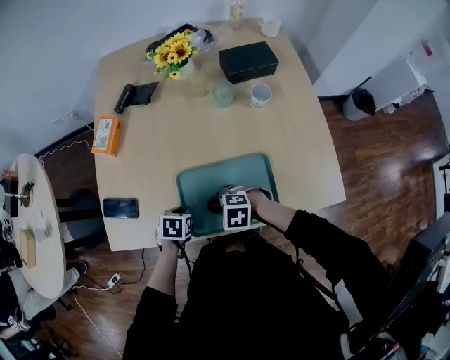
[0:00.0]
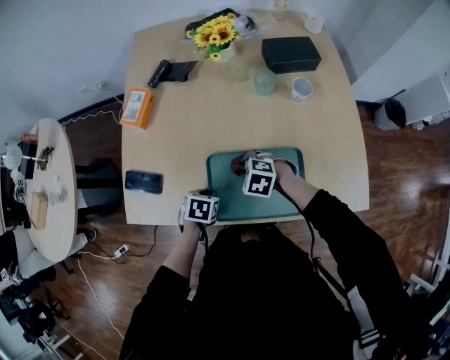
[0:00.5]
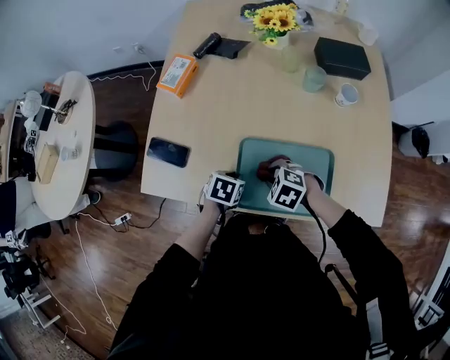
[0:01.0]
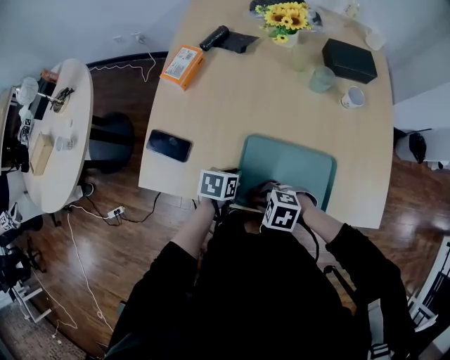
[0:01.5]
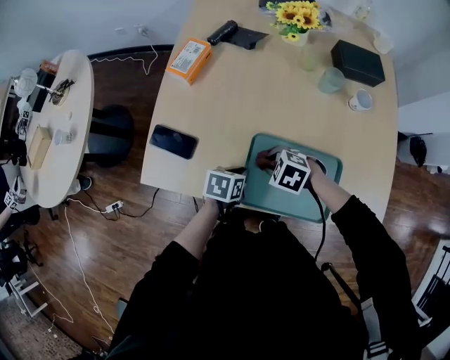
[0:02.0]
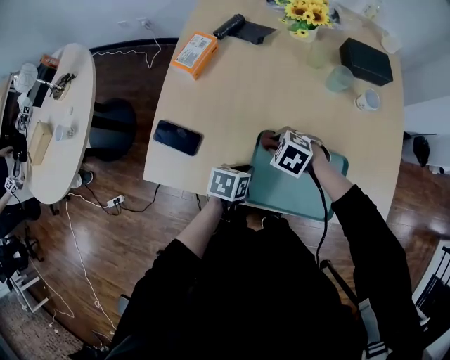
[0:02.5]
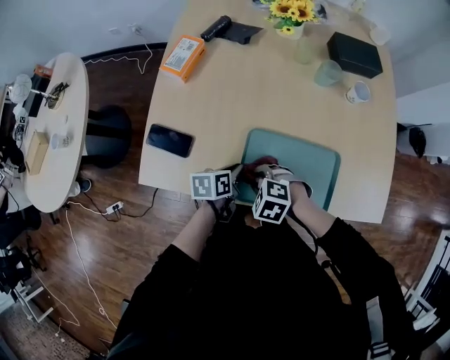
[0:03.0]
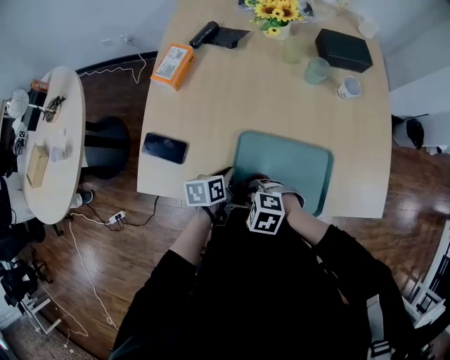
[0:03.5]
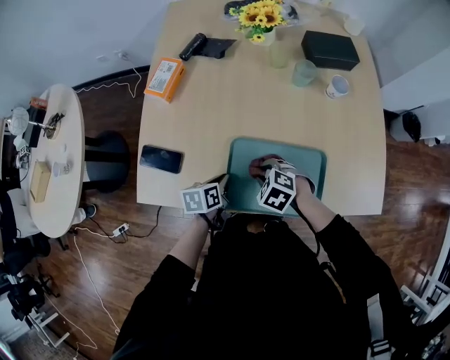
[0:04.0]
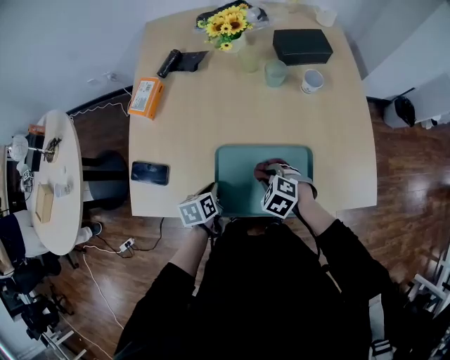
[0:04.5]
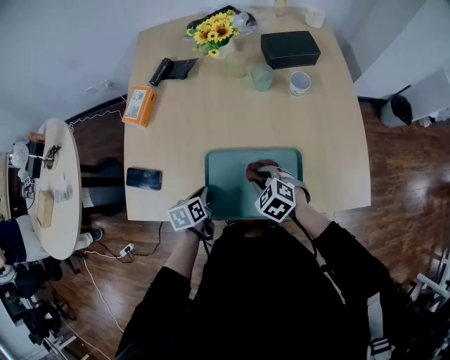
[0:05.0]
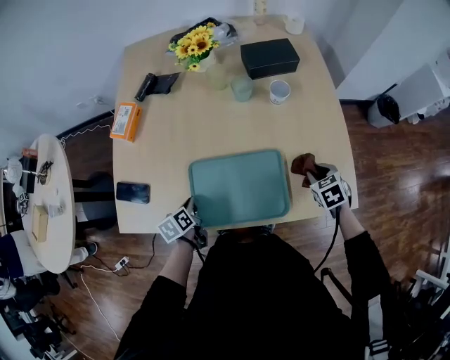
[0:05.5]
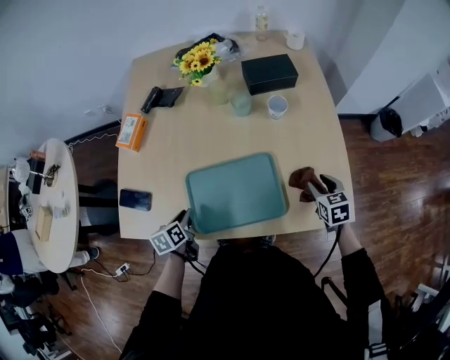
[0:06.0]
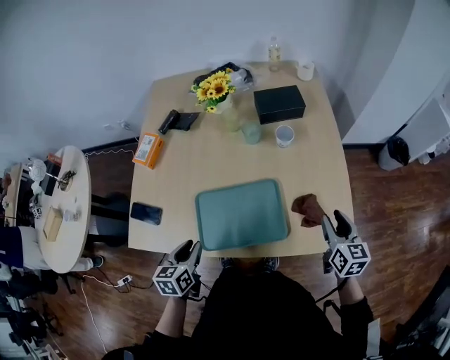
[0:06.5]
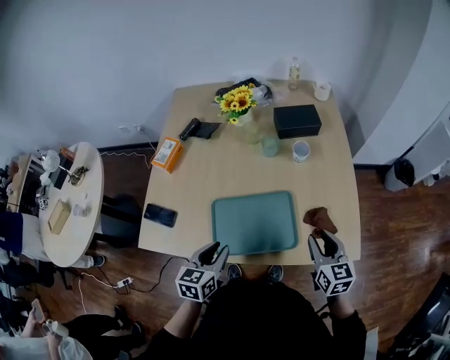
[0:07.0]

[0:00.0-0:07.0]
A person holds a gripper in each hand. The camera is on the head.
0:00.0 to 0:02.0: The right gripper moves about 10 cm, while the left gripper rotates approximately 20 degrees.
0:02.0 to 0:03.5: The right gripper shifts by about 10 cm.
0:03.5 to 0:05.0: The right gripper changes place by roughly 15 cm, and swivels approximately 30 degrees.
0:05.0 to 0:07.0: The right gripper goes some 25 cm to the right and upward, and points its fingers some 30 degrees further upward, while the left gripper moves upward and to the right, some 20 cm, turns by about 30 degrees, and opens its fingers.

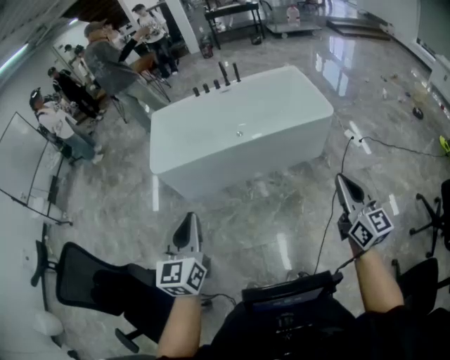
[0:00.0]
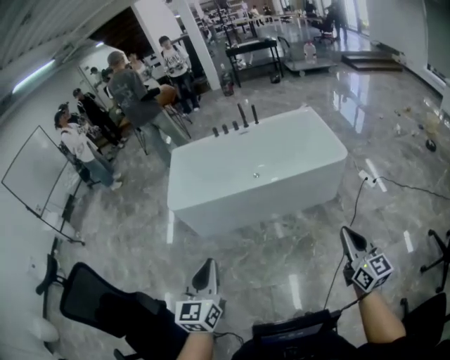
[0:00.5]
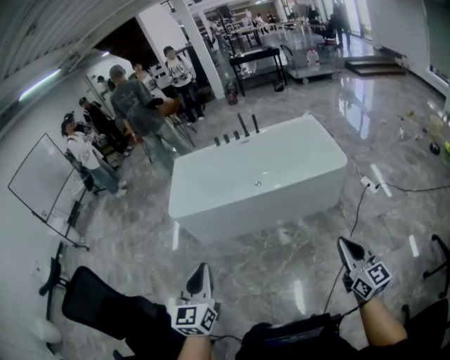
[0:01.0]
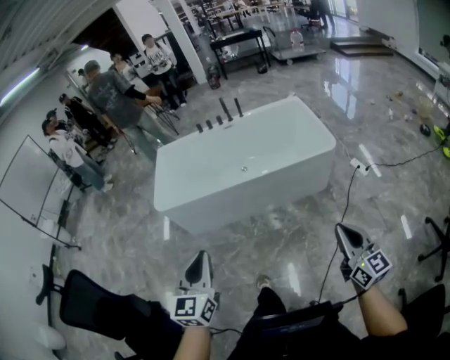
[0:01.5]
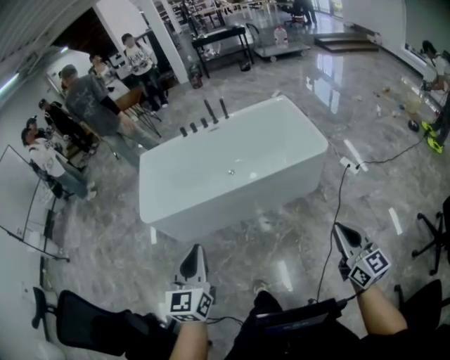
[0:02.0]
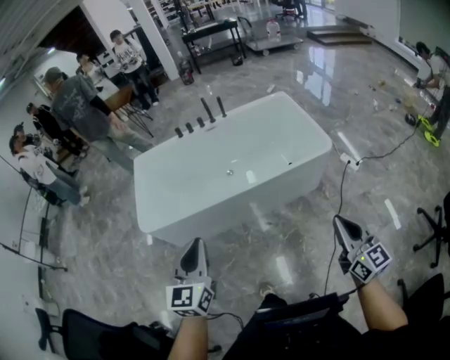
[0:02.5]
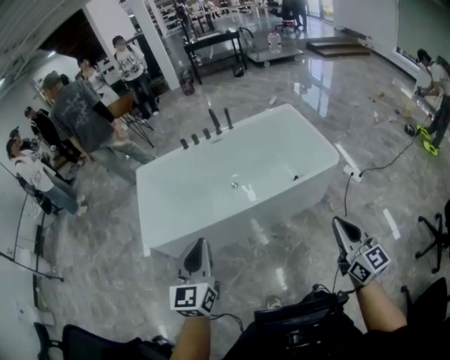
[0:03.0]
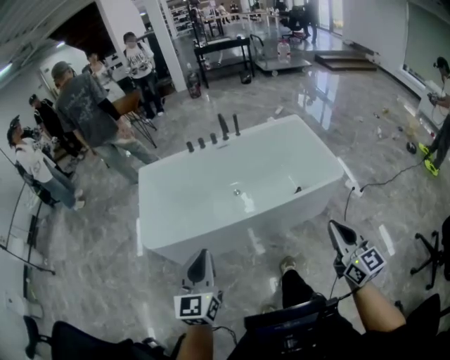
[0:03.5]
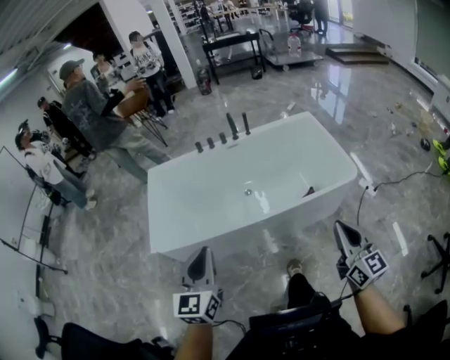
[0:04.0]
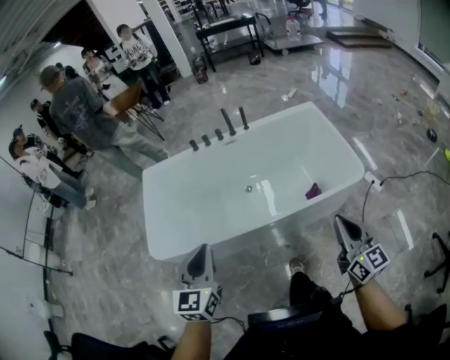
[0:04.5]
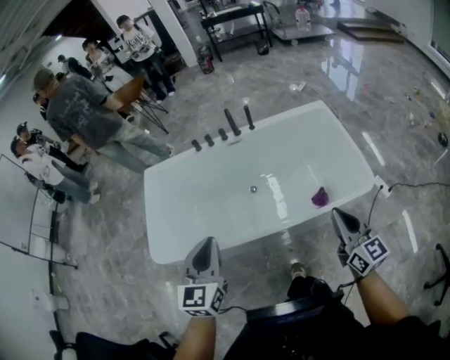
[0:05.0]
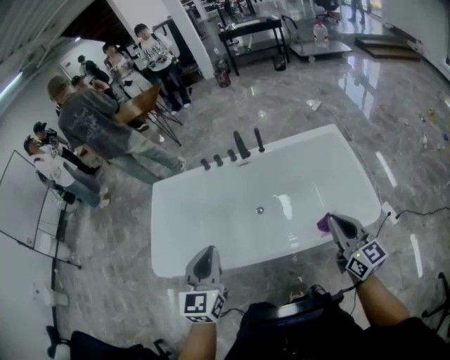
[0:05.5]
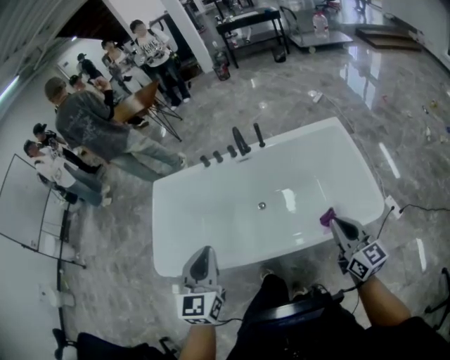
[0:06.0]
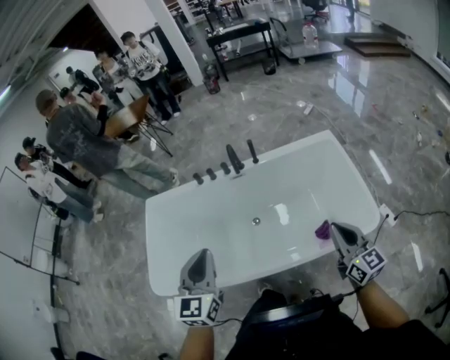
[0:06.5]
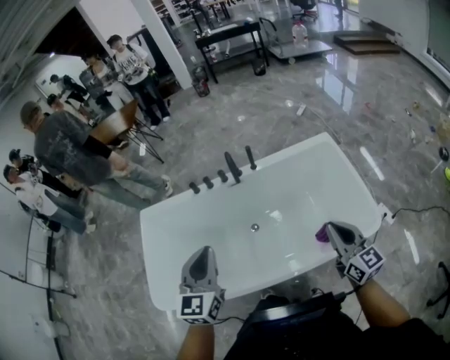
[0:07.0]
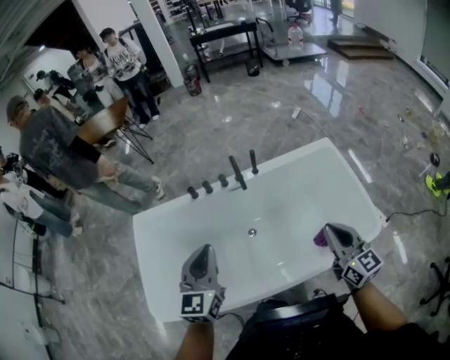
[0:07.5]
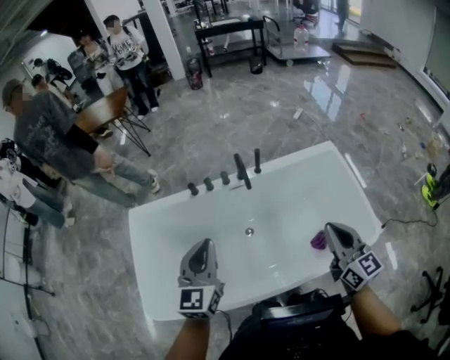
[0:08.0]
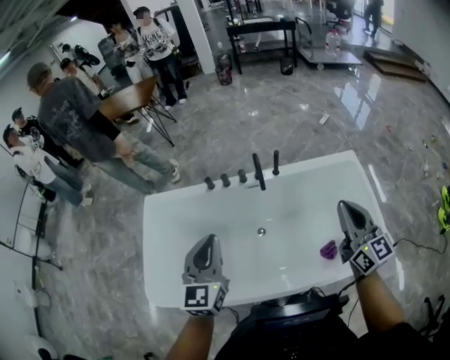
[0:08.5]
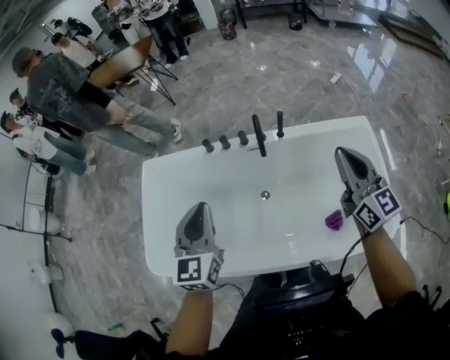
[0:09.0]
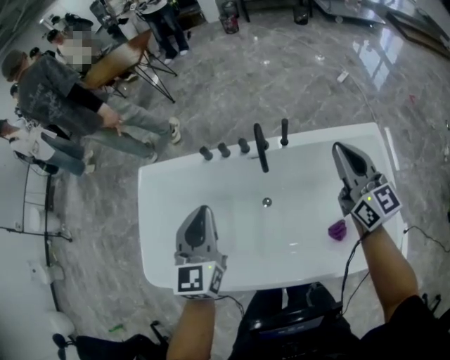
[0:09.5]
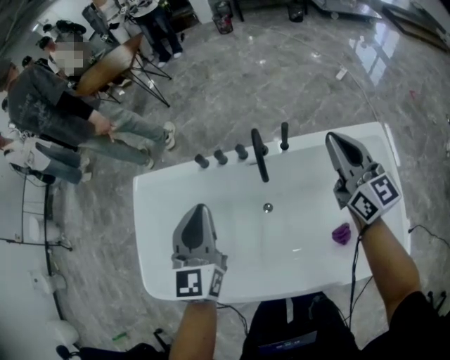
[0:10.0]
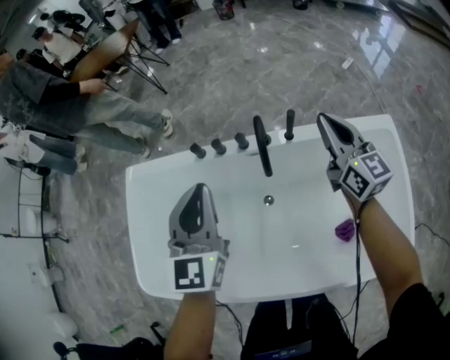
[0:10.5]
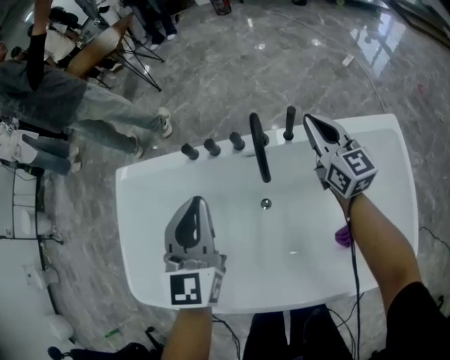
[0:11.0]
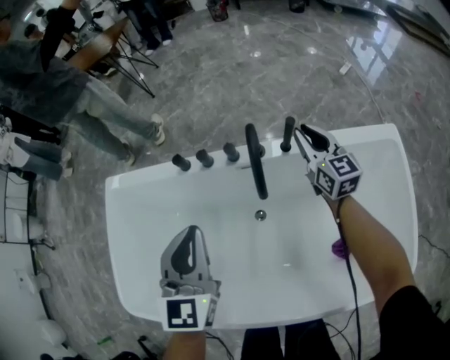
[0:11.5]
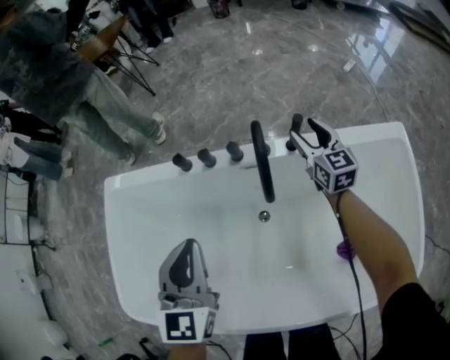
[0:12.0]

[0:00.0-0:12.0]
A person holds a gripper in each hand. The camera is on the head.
0:00.0 to 0:02.0: The left gripper is displaced forward and to the right by roughly 15 cm; the right gripper goes about 10 cm forward, to the right and downward.
0:02.0 to 0:04.0: The two grippers go about 25 cm forward and to the left.
0:04.0 to 0:06.0: The right gripper travels forward by approximately 35 cm; the left gripper shifts roughly 30 cm forward and to the right.
0:06.0 to 0:08.0: The left gripper travels forward by some 25 cm. The right gripper travels forward and to the left by roughly 20 cm.
0:08.0 to 0:10.0: The right gripper travels forward by some 30 cm. Meanwhile the left gripper shifts some 15 cm forward and to the right.
0:10.0 to 0:12.0: The right gripper moves downward and forward, roughly 35 cm, and opens up, while the left gripper heads downward, covering roughly 15 cm.

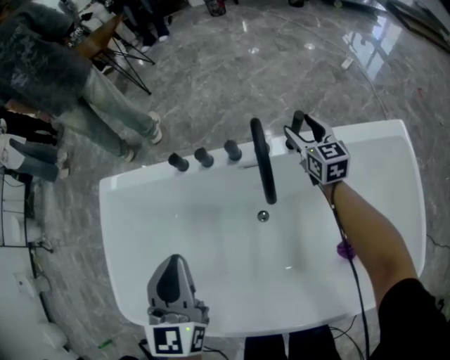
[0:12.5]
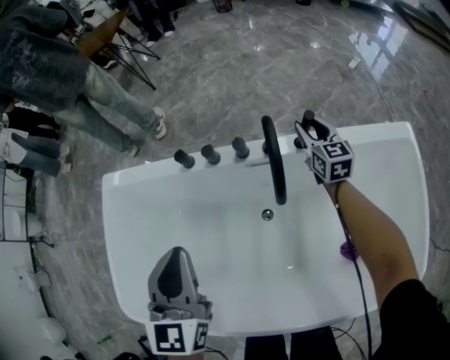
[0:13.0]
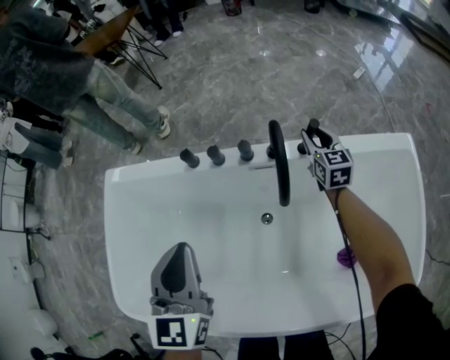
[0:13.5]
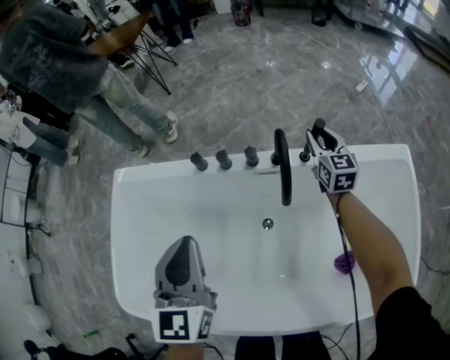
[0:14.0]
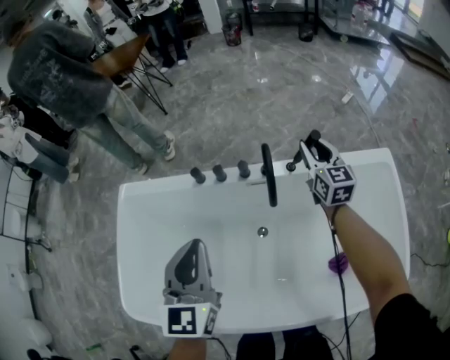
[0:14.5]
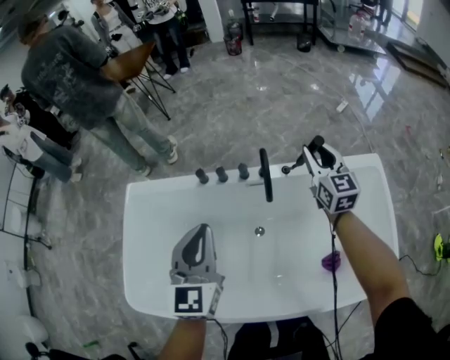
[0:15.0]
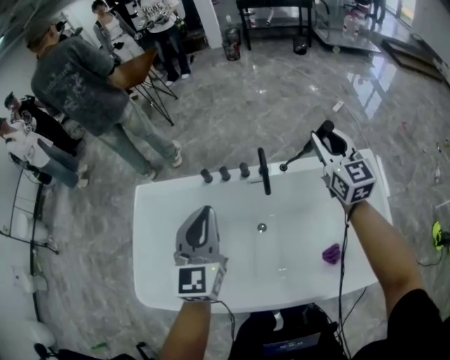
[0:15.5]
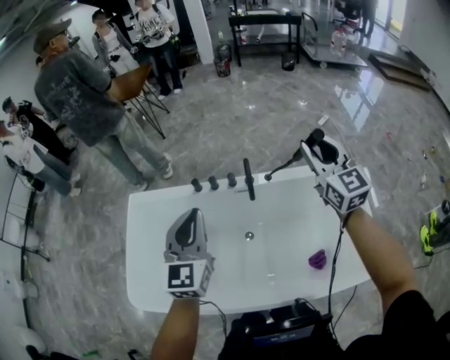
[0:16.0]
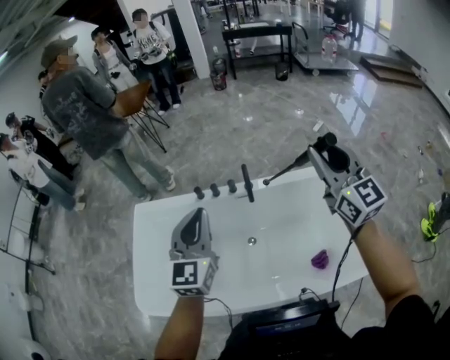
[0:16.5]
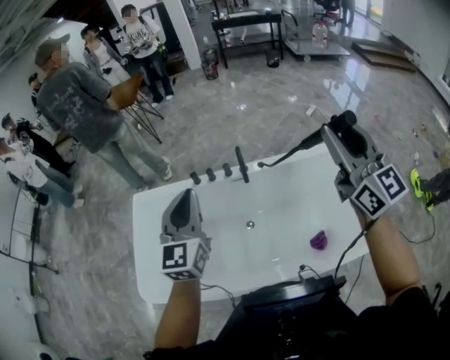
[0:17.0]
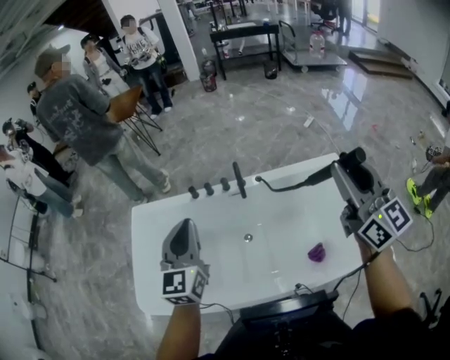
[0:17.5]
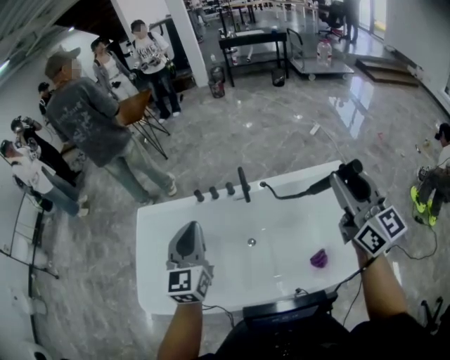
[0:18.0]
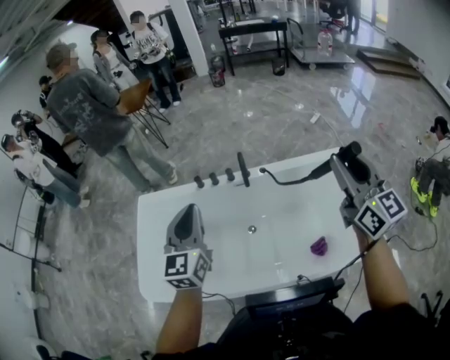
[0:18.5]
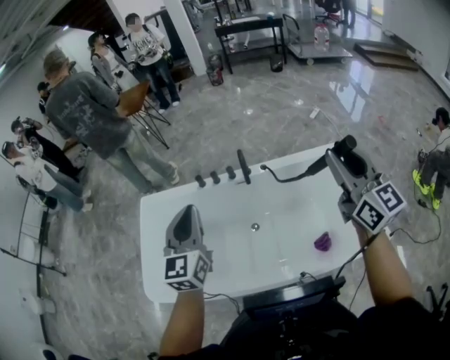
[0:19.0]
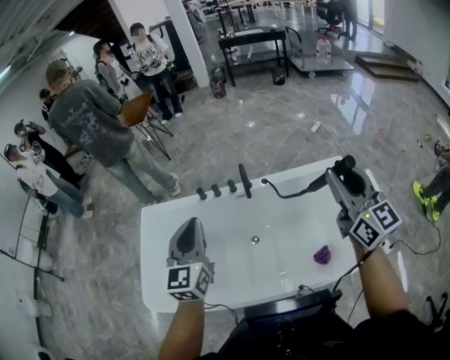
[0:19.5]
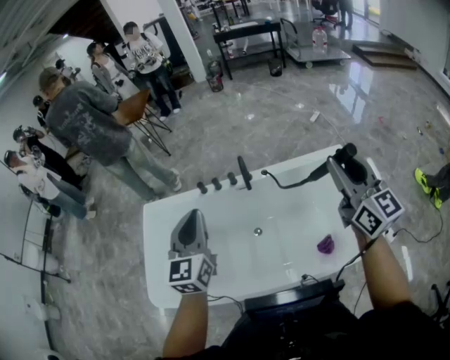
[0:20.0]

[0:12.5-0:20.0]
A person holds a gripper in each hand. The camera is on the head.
0:12.5 to 0:14.5: The left gripper heads upward, covering about 10 cm. The right gripper heads upward, covering about 15 cm, and closes.
0:14.5 to 0:16.5: The left gripper shifts approximately 20 cm upward. Meanwhile the right gripper heads upward and backward, covering some 50 cm, and changes its angle by some 20 degrees.
0:16.5 to 0:18.0: The right gripper moves backward, some 15 cm. Meanwhile the left gripper shifts approximately 5 cm backward.
0:18.0 to 0:20.0: The grippers stay close to where they were, moving slightly.
